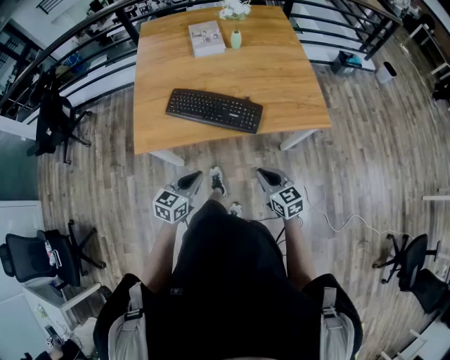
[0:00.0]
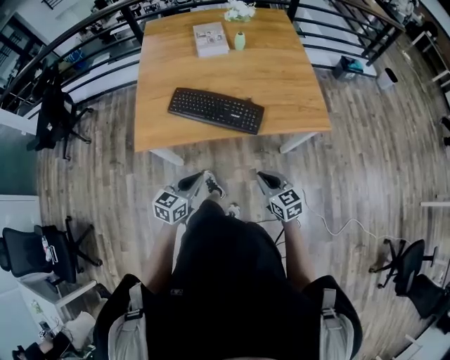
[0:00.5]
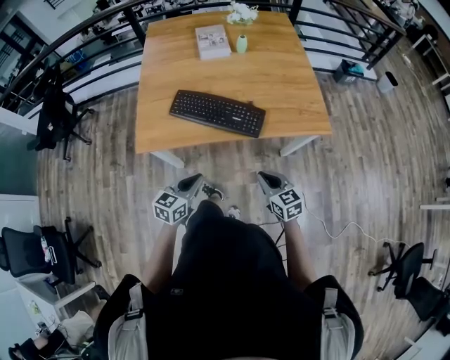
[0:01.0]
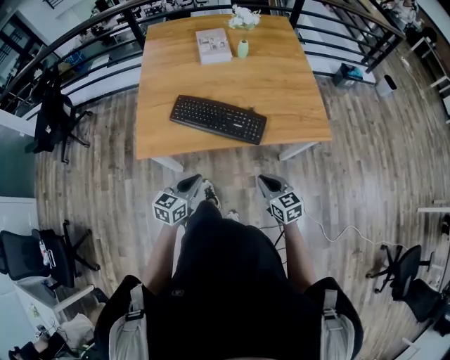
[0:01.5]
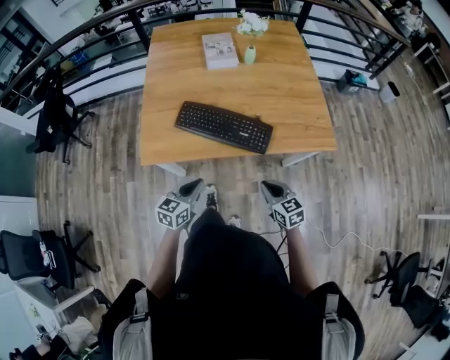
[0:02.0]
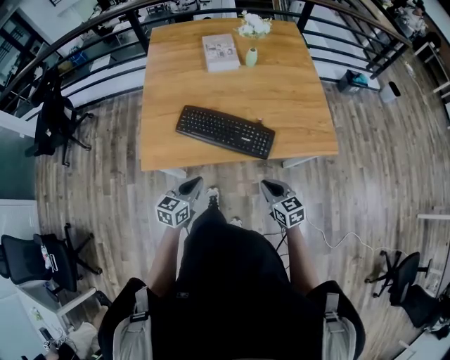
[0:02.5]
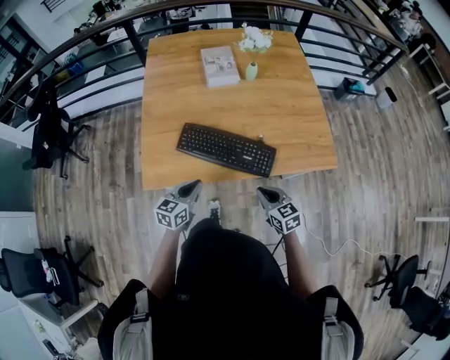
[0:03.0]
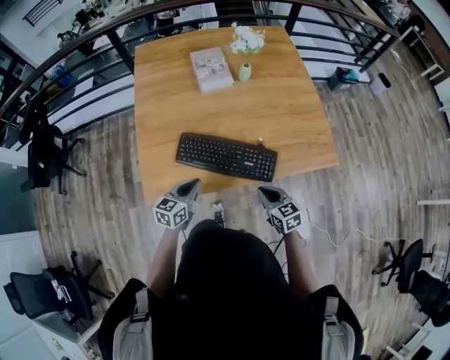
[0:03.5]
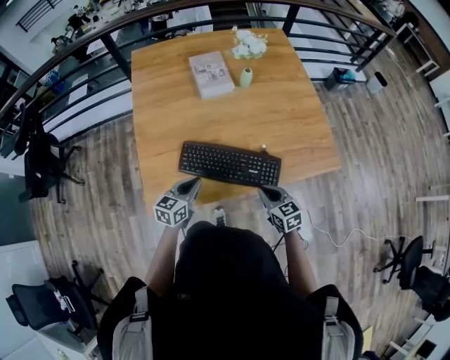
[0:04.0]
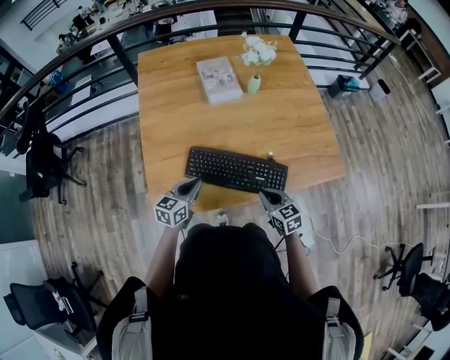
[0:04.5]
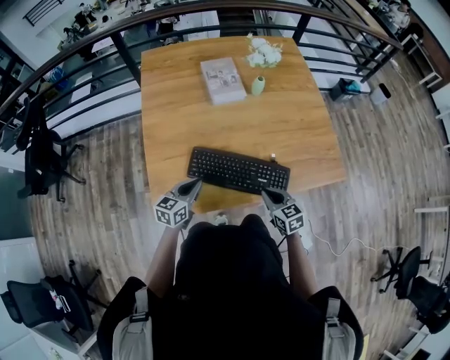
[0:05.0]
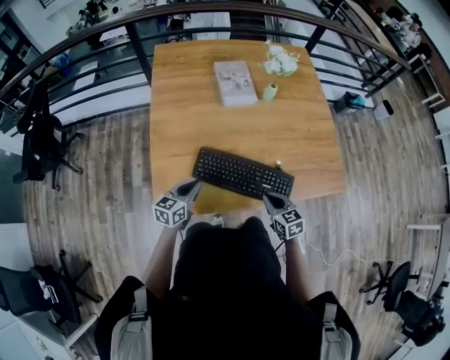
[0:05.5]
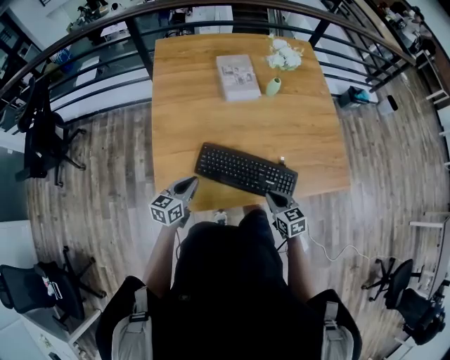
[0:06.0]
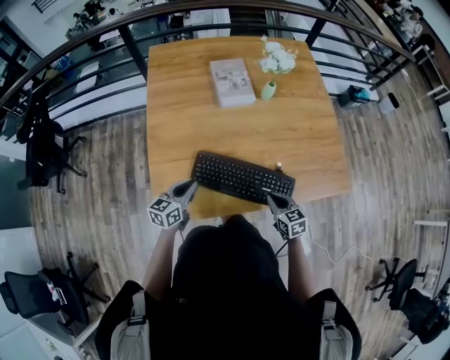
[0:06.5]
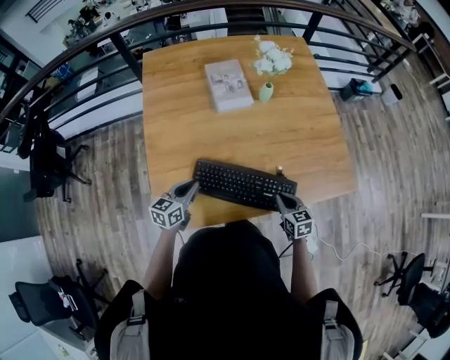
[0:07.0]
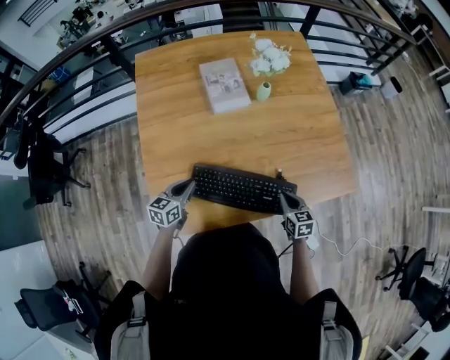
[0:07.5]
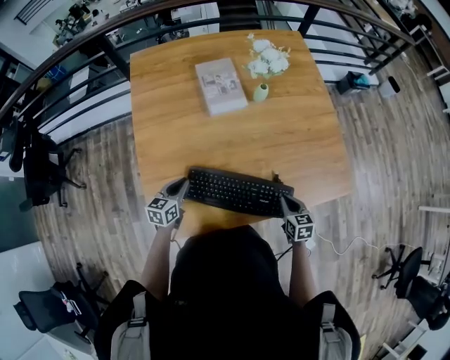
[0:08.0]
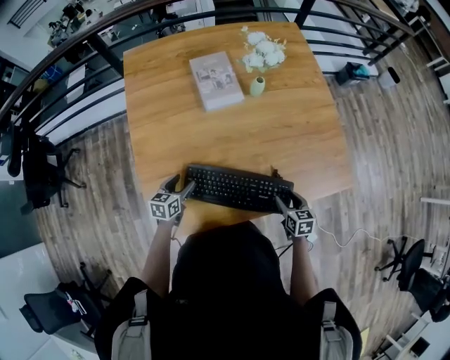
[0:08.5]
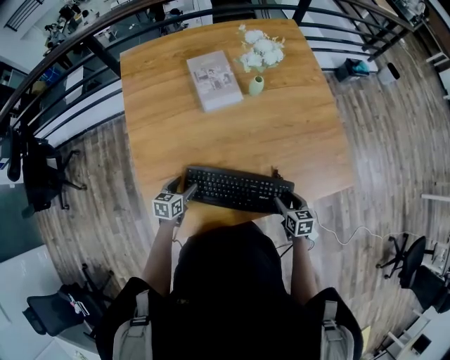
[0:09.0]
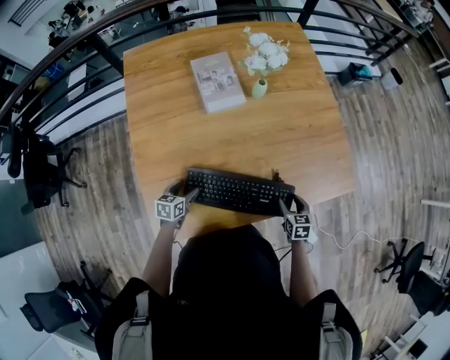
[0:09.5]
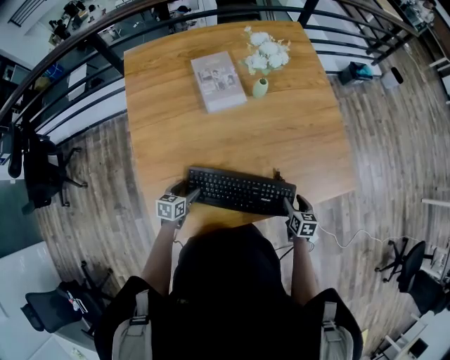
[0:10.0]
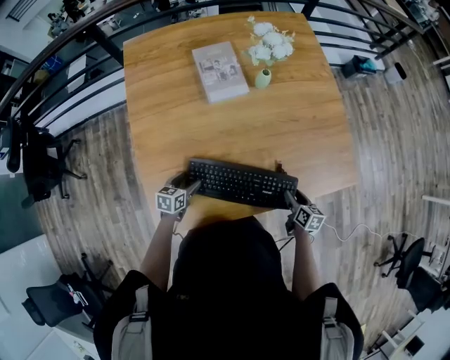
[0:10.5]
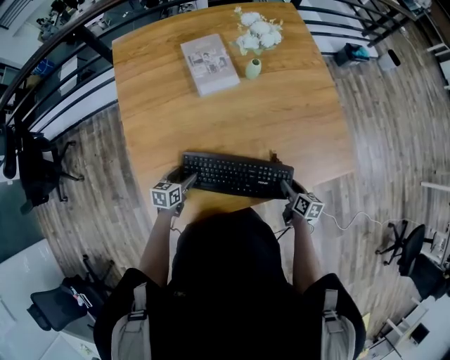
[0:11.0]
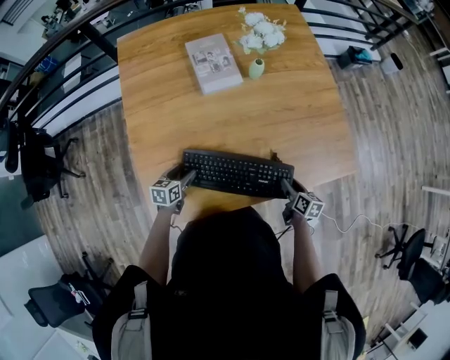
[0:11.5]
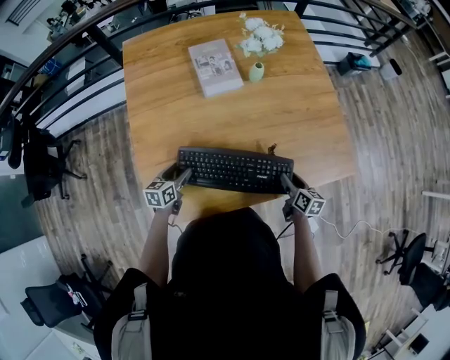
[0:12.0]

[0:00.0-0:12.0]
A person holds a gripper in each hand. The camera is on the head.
0:00.0 to 0:02.0: The left gripper changes place by approximately 5 cm.
0:02.0 to 0:04.0: The right gripper moves forward and to the left, some 20 cm. Meanwhile the left gripper travels forward by roughly 20 cm.
0:04.0 to 0:06.0: The right gripper moves approximately 5 cm, while the left gripper shifts some 10 cm to the left.
0:06.0 to 0:08.0: The right gripper is displaced to the right and forward by about 15 cm. Meanwhile the left gripper shifts about 10 cm forward.
0:08.0 to 0:10.0: The left gripper moves downward, approximately 10 cm, and opens its fingers. Meanwhile the right gripper is displaced downward and to the right by about 5 cm, and opens up.
0:10.0 to 0:12.0: The right gripper swivels some 20 degrees. The left gripper ends up about 5 cm from where it was.

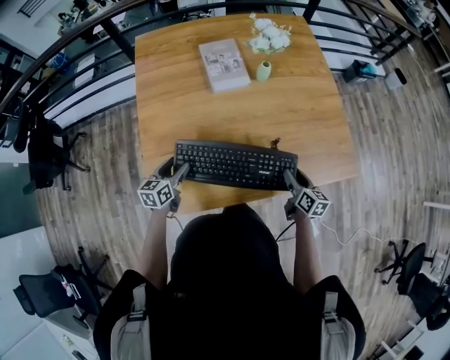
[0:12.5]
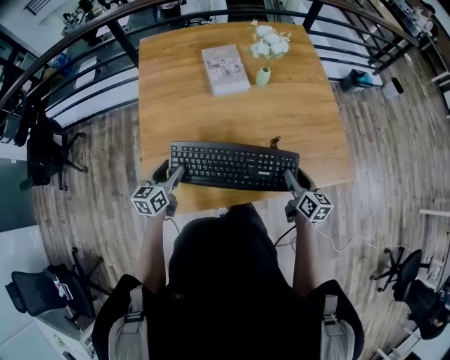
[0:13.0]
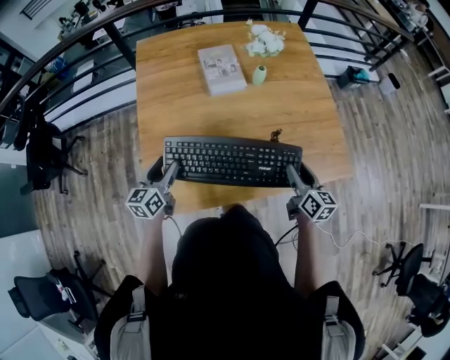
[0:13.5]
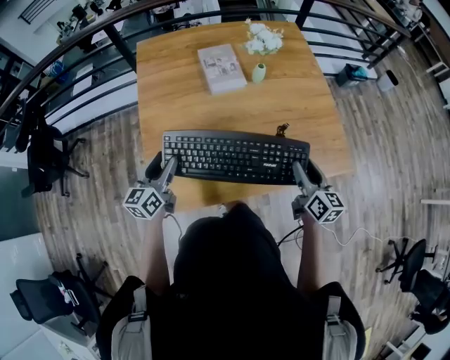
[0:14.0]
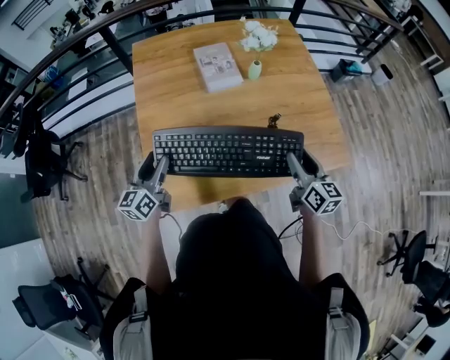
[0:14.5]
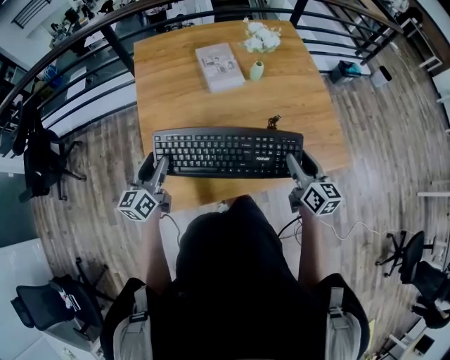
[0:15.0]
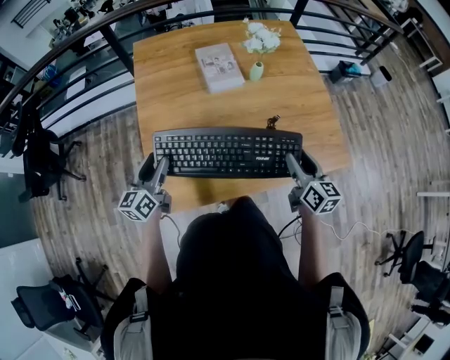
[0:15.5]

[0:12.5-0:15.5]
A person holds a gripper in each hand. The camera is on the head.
0:12.5 to 0:14.0: Both grippers travel together upward, some 15 cm. The left gripper changes its angle by some 20 degrees.
0:14.0 to 0:15.5: There are only small adjustments of the grippers.

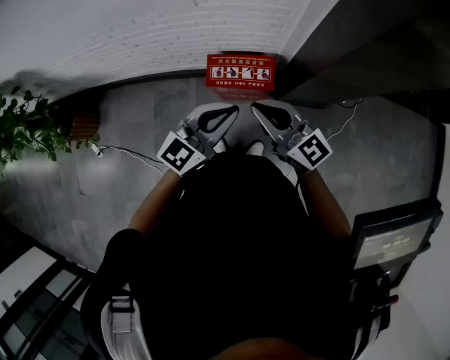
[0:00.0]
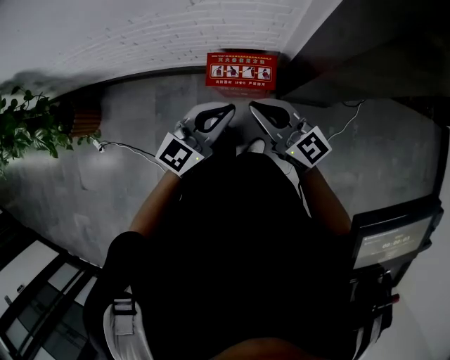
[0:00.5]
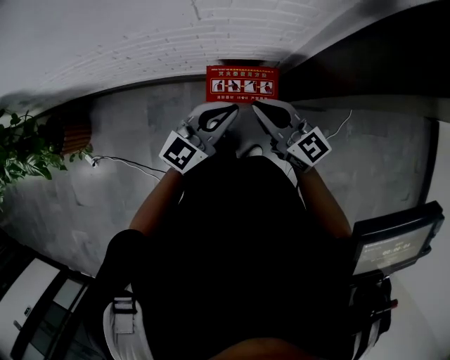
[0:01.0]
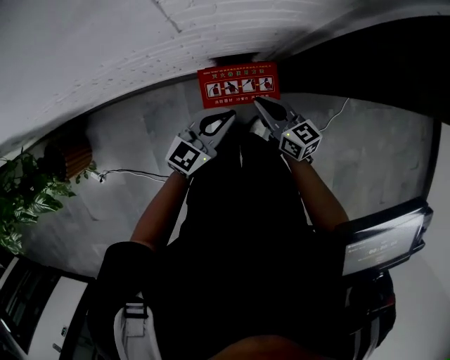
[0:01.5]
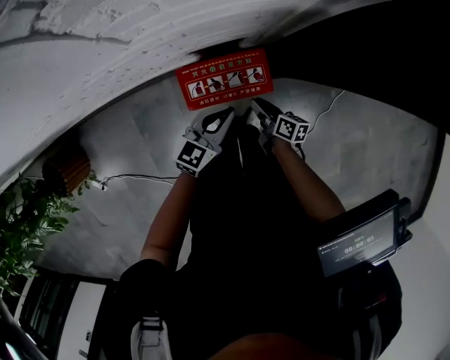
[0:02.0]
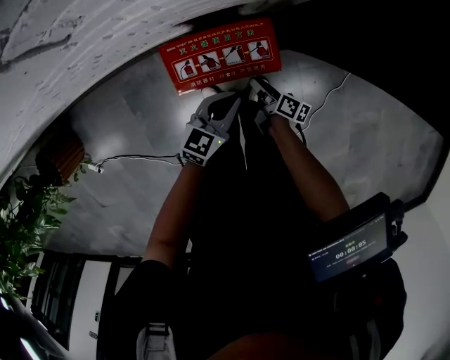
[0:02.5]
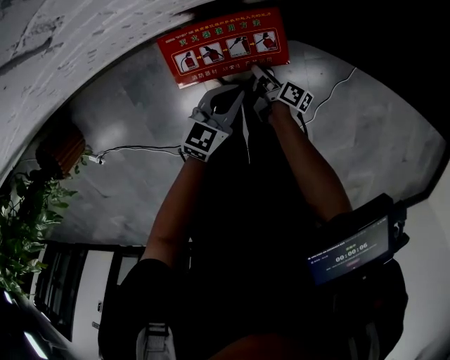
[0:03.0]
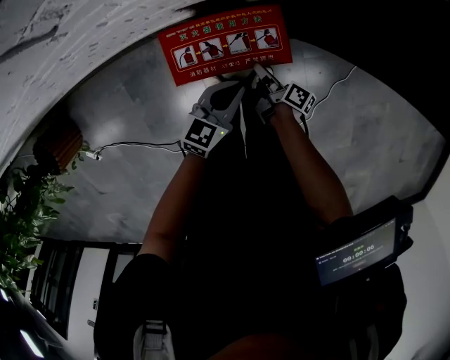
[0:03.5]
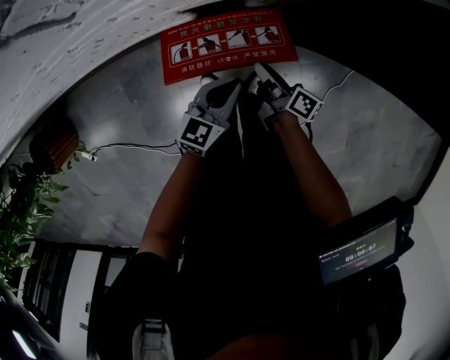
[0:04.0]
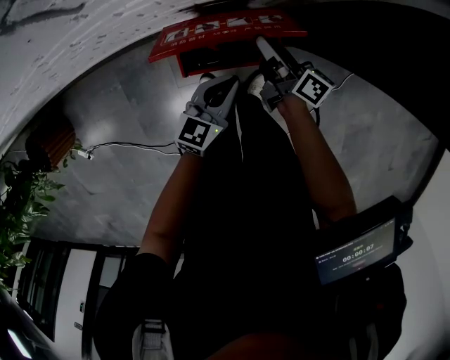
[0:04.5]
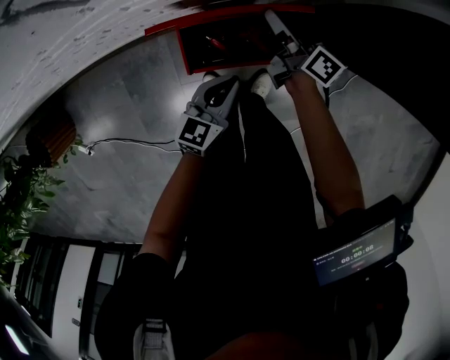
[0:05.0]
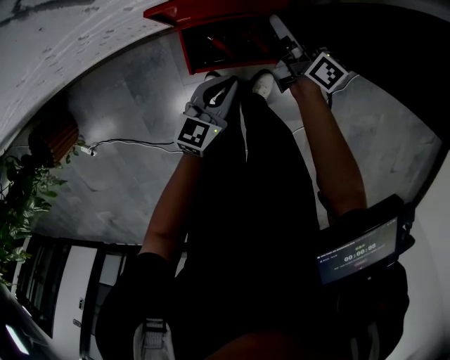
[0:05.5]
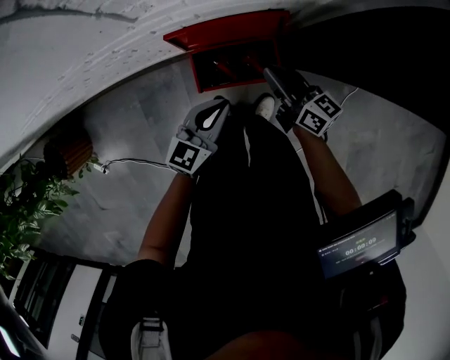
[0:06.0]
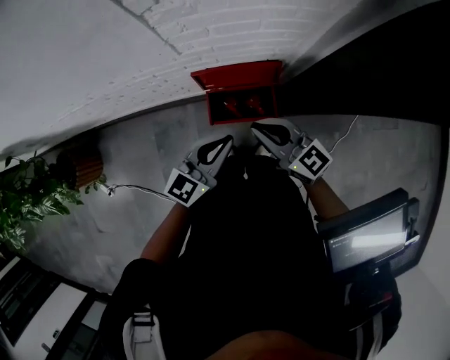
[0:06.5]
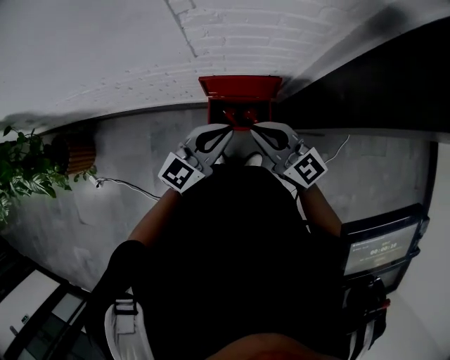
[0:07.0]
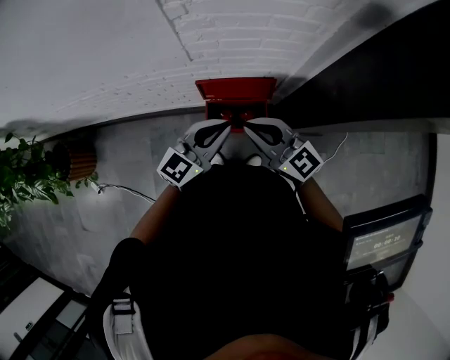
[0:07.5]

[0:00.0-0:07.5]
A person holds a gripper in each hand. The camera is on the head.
0:00.0 to 0:02.0: The right gripper shifts about 40 cm downward, and rotates around the line of its fingers by approximately 60 degrees, clockwise from behind, while the left gripper heads downward and forward, covering roughly 35 cm, and turns by some 20 degrees.
0:02.0 to 0:04.0: The right gripper moves some 15 cm downward and comes back. Meanwhile the left gripper heads downward, covering approximately 10 cm.
0:04.0 to 0:05.5: The right gripper is displaced forward and upward by approximately 15 cm, and rotates approximately 20 degrees.
0:05.5 to 0:07.5: The right gripper travels upward and backward by approximately 35 cm, and twists about 60 degrees counterclockwise, seen from behind. The left gripper moves upward, some 35 cm, and changes its angle by approximately 20 degrees.

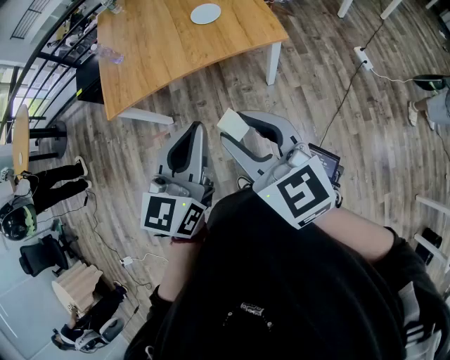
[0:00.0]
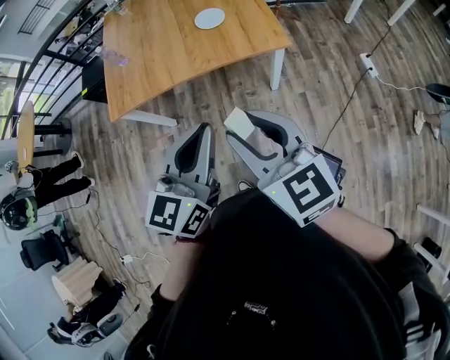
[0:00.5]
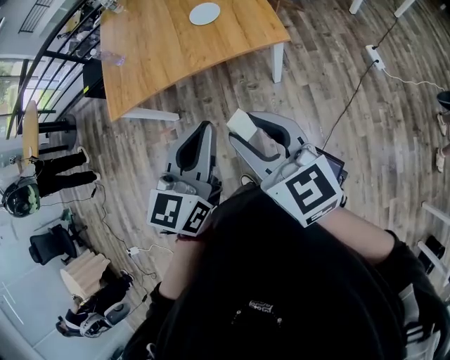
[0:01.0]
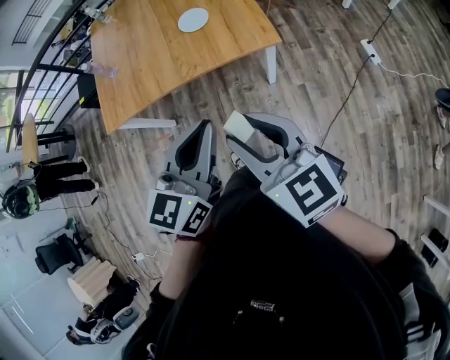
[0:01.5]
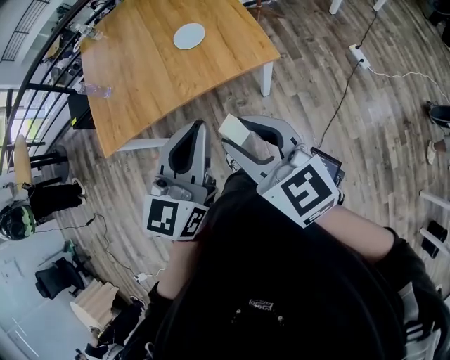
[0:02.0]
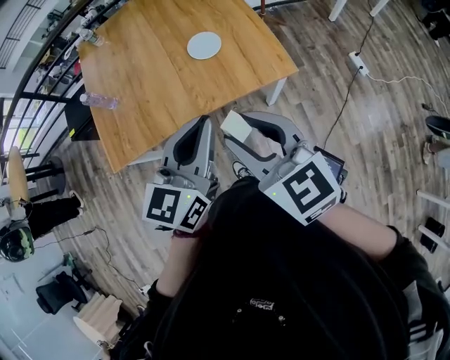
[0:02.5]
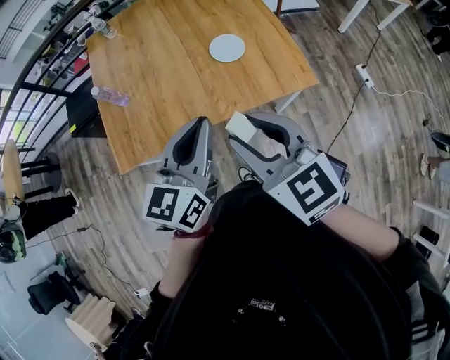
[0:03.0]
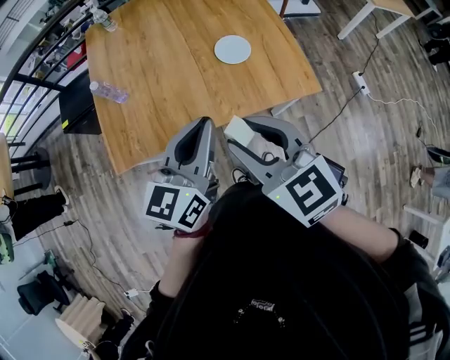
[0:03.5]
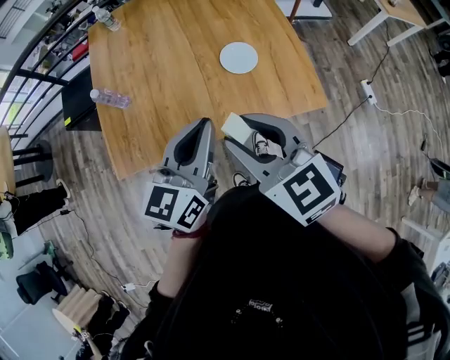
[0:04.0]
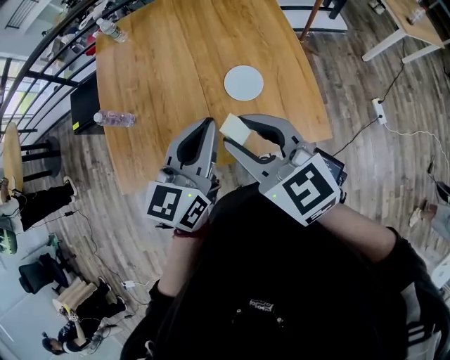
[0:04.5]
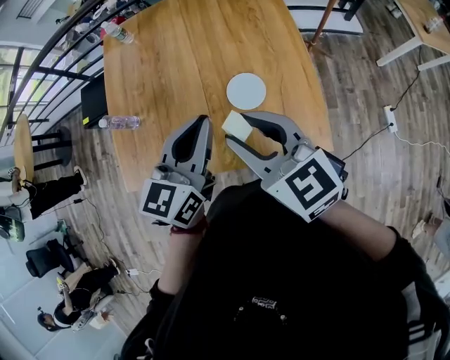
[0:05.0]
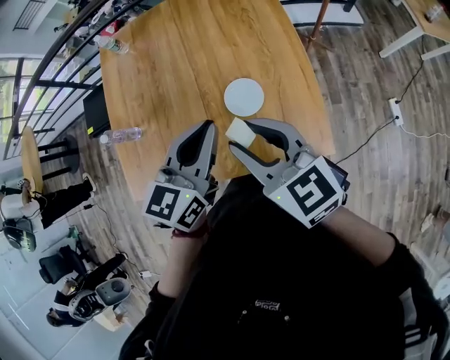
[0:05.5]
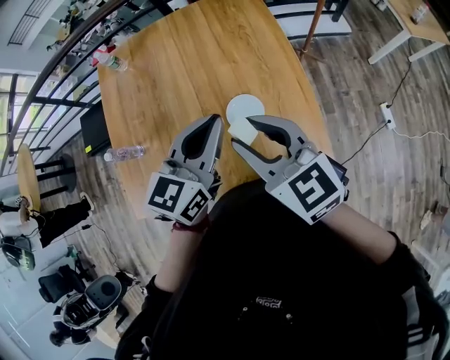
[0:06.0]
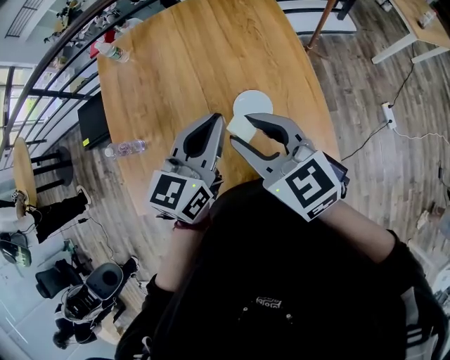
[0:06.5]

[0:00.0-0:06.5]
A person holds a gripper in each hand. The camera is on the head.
0:00.0 to 0:02.0: The two grippers go about 15 cm forward and to the right.
0:02.0 to 0:04.5: The two grippers go approximately 30 cm forward.
0:04.5 to 0:06.5: Both grippers travel together forward, some 10 cm.
